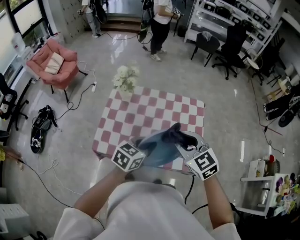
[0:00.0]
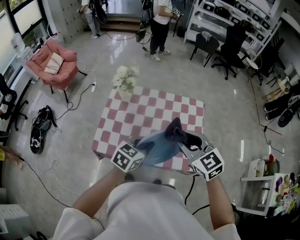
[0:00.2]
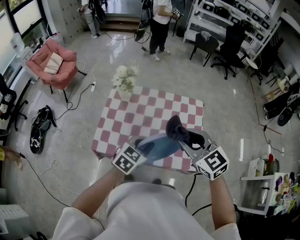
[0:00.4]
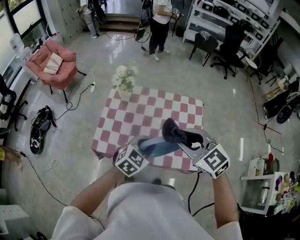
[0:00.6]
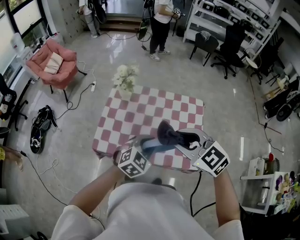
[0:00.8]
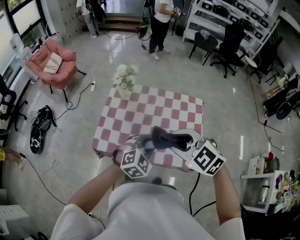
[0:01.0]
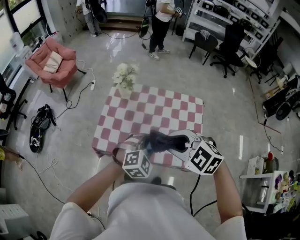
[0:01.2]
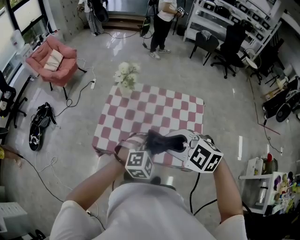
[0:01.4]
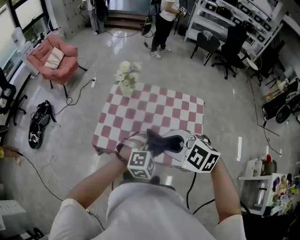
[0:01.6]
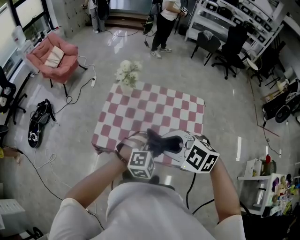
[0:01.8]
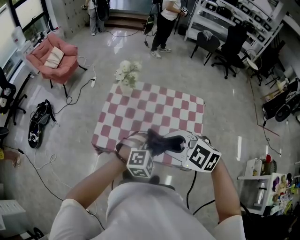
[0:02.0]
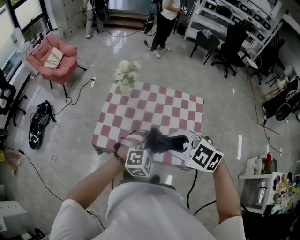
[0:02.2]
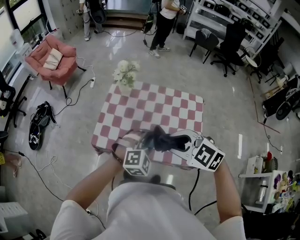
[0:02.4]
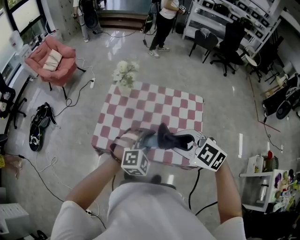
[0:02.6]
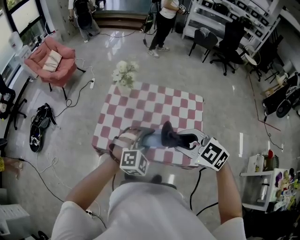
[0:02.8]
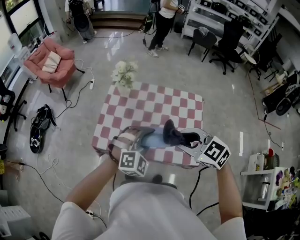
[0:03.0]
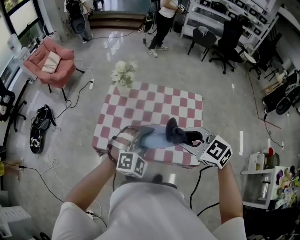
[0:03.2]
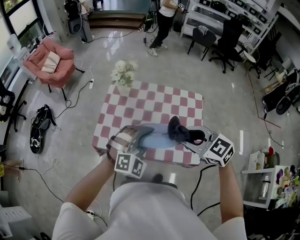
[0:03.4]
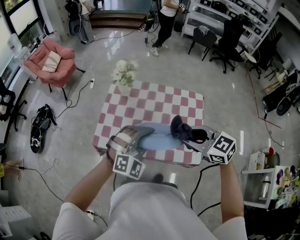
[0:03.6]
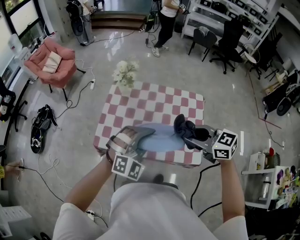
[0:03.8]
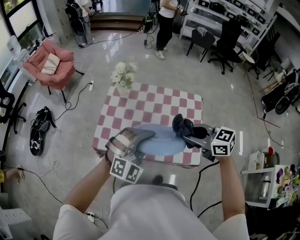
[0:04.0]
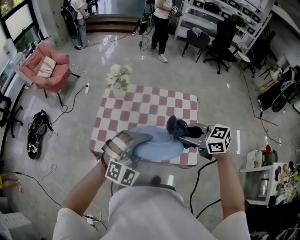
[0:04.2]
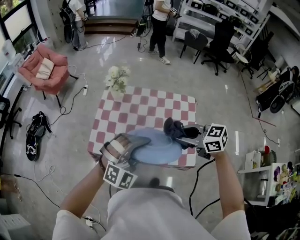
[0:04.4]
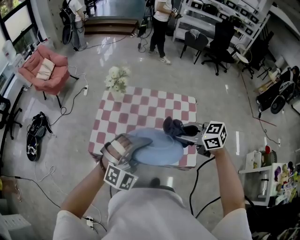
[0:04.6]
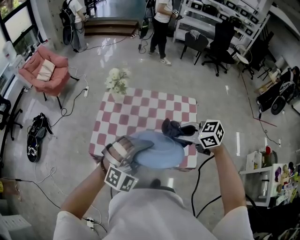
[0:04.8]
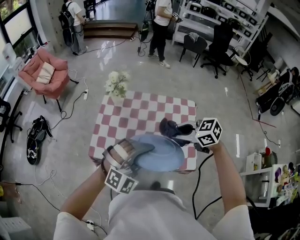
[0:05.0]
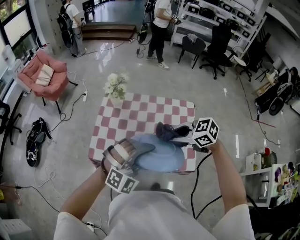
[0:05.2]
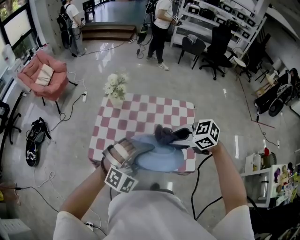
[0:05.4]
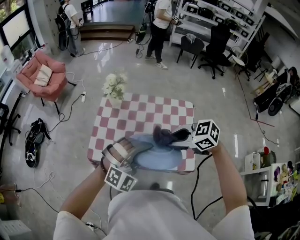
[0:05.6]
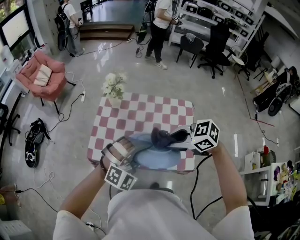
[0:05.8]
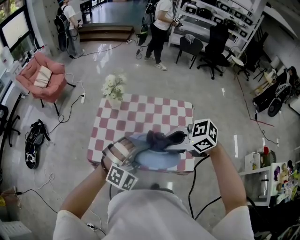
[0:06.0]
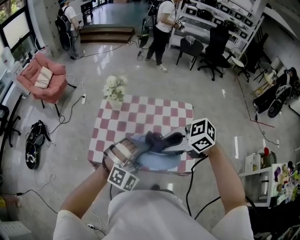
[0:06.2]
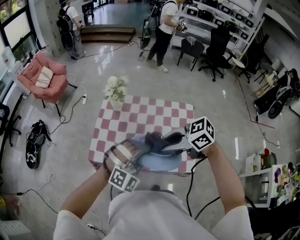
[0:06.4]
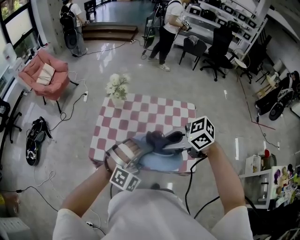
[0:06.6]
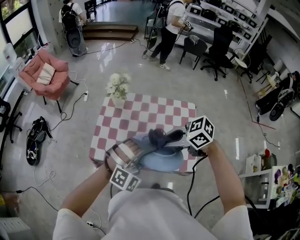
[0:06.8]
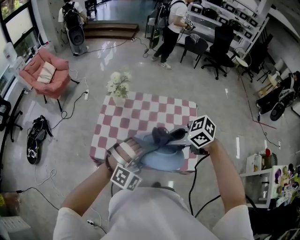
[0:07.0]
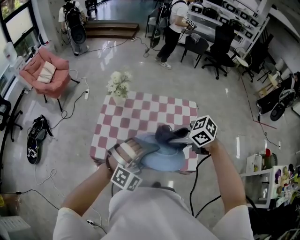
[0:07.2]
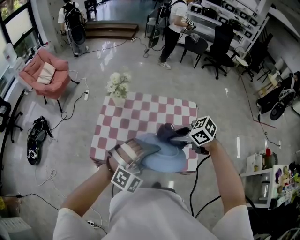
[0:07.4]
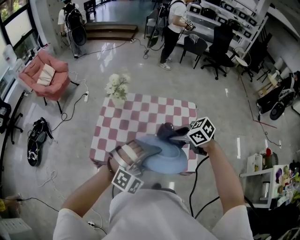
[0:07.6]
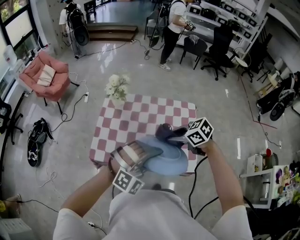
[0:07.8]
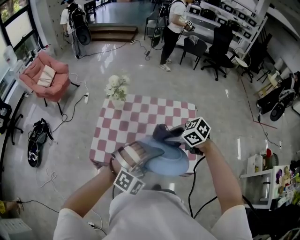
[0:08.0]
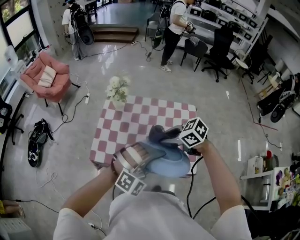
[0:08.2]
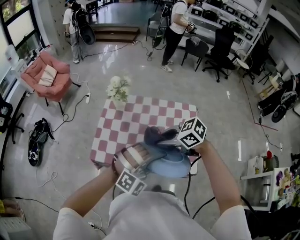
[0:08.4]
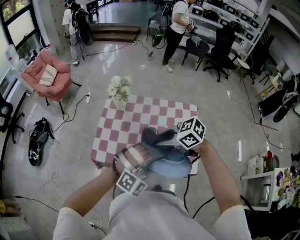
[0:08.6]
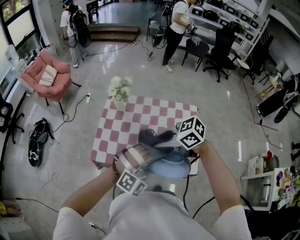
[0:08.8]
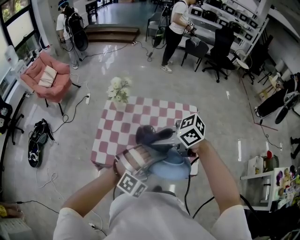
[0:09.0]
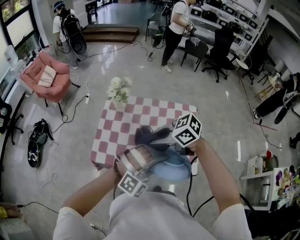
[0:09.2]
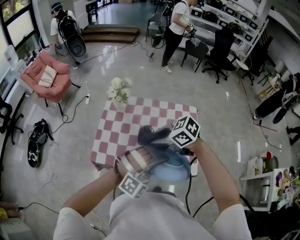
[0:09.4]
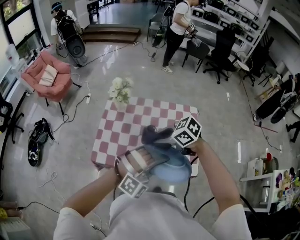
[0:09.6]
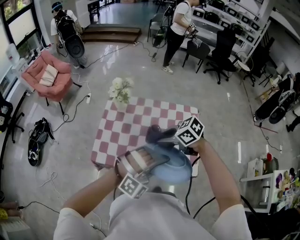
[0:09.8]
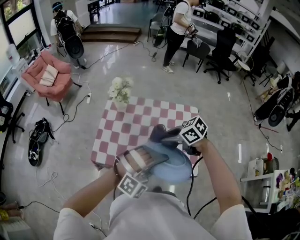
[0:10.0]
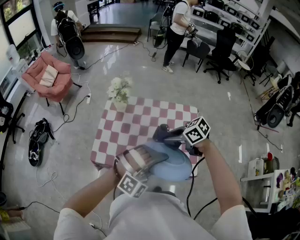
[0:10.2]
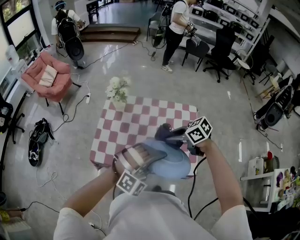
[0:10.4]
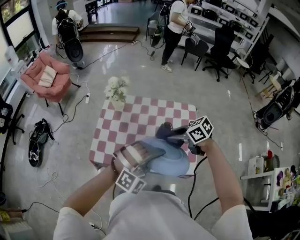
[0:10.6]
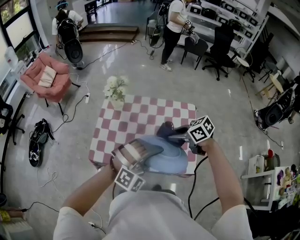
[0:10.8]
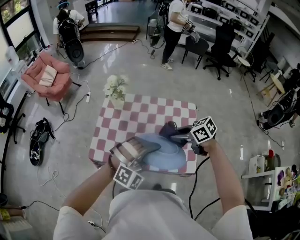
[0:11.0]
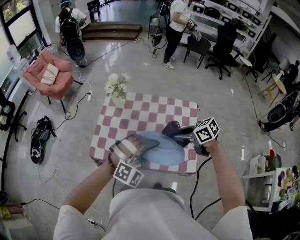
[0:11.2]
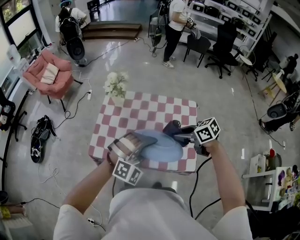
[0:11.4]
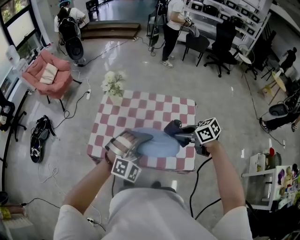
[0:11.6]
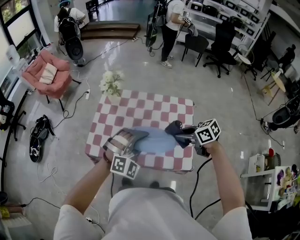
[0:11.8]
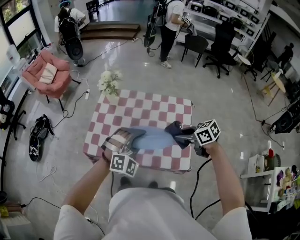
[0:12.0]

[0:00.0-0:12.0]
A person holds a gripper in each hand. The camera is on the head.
0:00.0 to 0:01.6: The right gripper shifts roughly 10 cm to the left and backward, and rotates roughly 40 degrees; the left gripper rotates around the line of its fingers by some 60 degrees, clockwise from behind.
0:01.6 to 0:03.0: The right gripper is displaced to the right by some 10 cm.
0:03.0 to 0:04.4: The left gripper shifts some 5 cm upward. Meanwhile the right gripper changes its angle by roughly 20 degrees.
0:04.4 to 0:06.0: The right gripper shifts by approximately 5 cm.
0:06.0 to 0:07.6: The right gripper goes about 10 cm downward, and rotates about 20 degrees.
0:07.6 to 0:09.0: The right gripper shifts by about 15 cm, and swivels some 20 degrees.
0:09.0 to 0:10.4: The right gripper changes place by some 15 cm.
0:10.4 to 0:12.0: The left gripper shifts by approximately 5 cm, and turns by about 20 degrees. The right gripper moves some 15 cm.

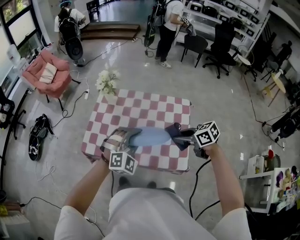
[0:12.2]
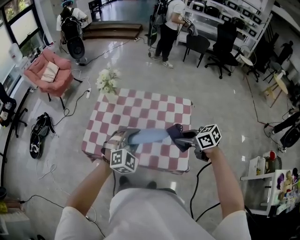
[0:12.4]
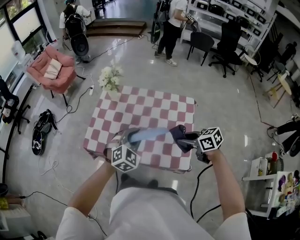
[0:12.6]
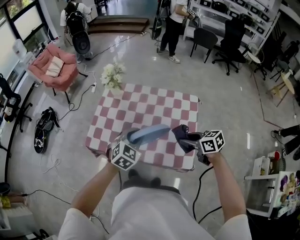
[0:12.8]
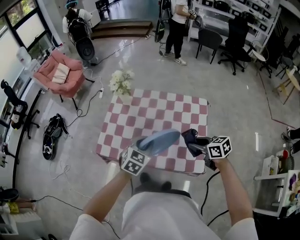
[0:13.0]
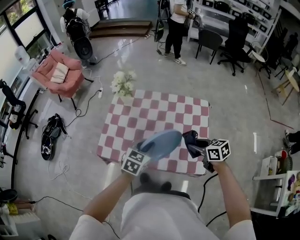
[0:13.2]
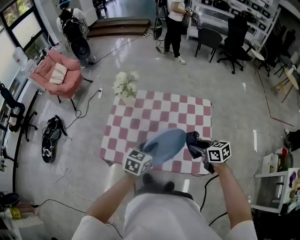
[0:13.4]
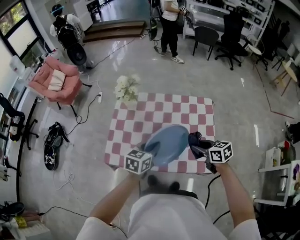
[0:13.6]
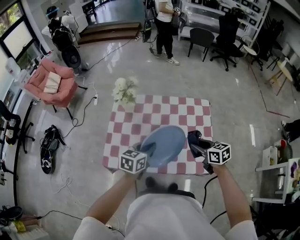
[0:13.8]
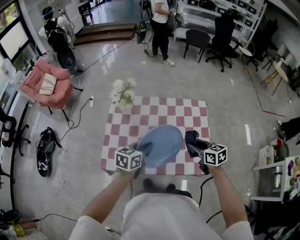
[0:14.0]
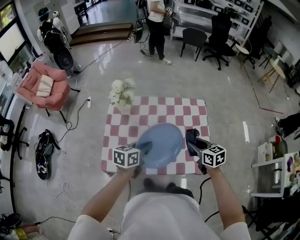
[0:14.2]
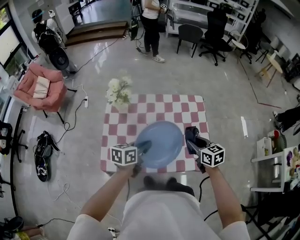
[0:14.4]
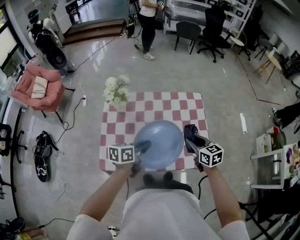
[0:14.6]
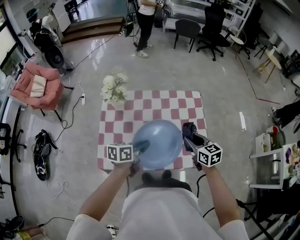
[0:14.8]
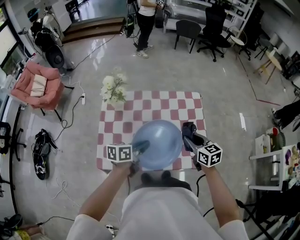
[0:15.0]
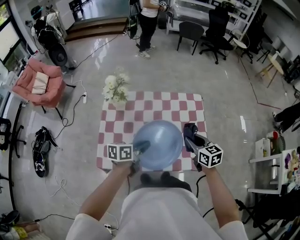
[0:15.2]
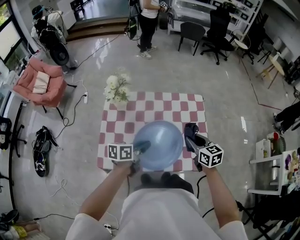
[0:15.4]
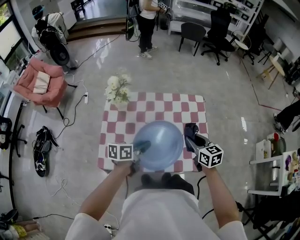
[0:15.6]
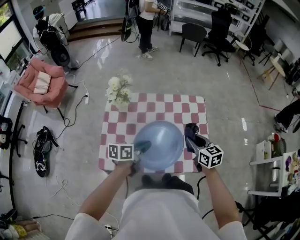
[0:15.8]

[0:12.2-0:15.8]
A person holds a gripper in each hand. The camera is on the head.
0:12.2 to 0:14.0: The left gripper moves about 20 cm, and rotates around the line of its fingers by about 80 degrees, counterclockwise from behind. Meanwhile the right gripper changes place by approximately 10 cm, and turns by some 30 degrees.
0:14.0 to 0:15.8: The left gripper swivels roughly 20 degrees.

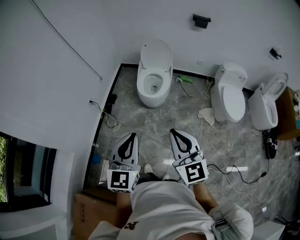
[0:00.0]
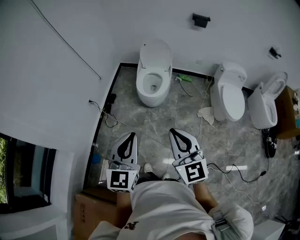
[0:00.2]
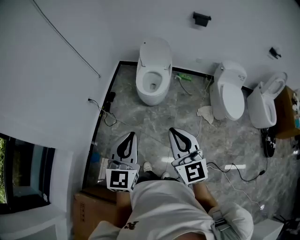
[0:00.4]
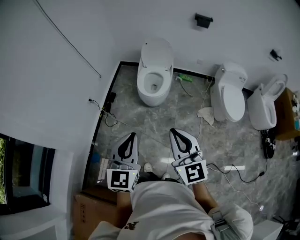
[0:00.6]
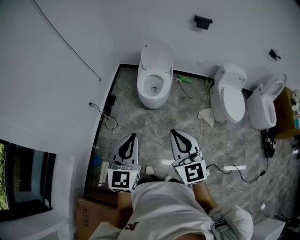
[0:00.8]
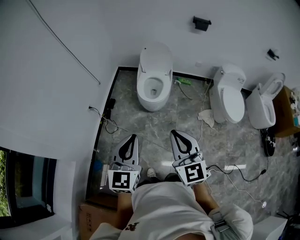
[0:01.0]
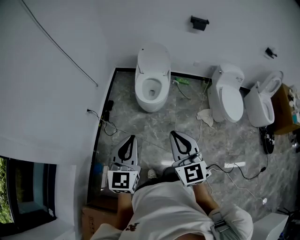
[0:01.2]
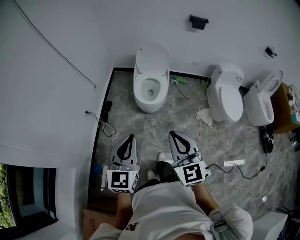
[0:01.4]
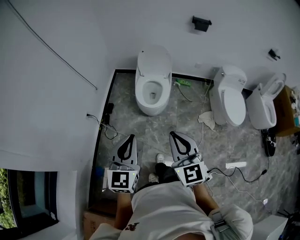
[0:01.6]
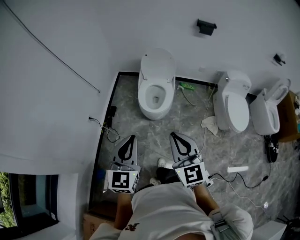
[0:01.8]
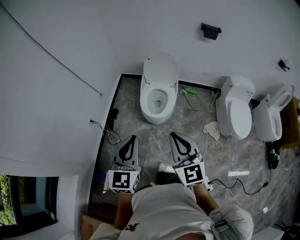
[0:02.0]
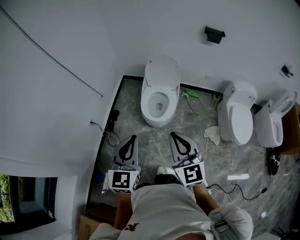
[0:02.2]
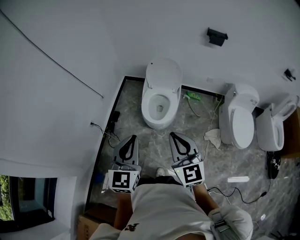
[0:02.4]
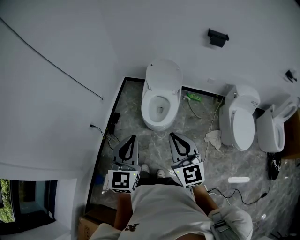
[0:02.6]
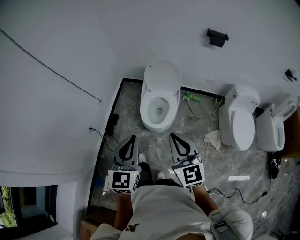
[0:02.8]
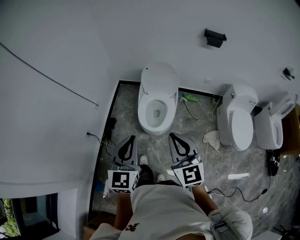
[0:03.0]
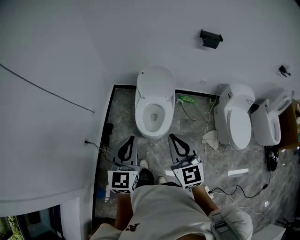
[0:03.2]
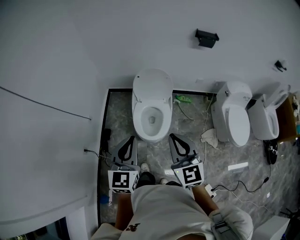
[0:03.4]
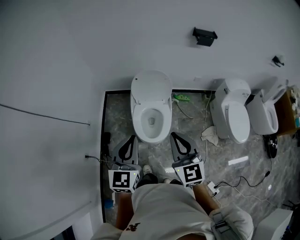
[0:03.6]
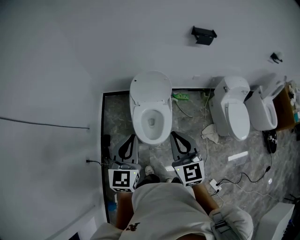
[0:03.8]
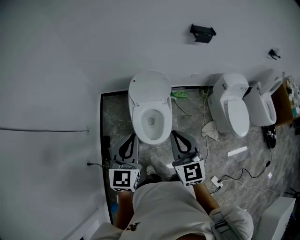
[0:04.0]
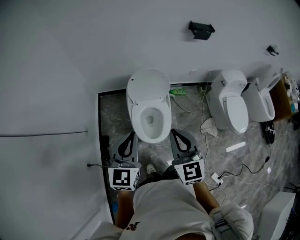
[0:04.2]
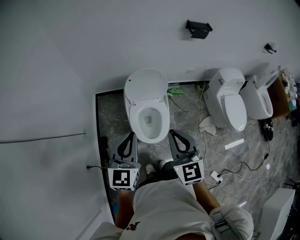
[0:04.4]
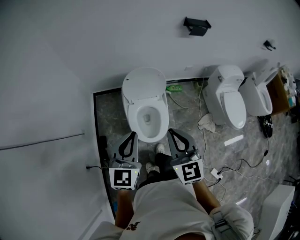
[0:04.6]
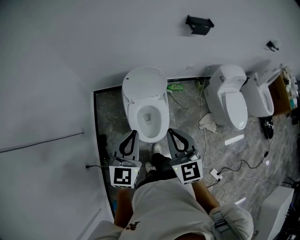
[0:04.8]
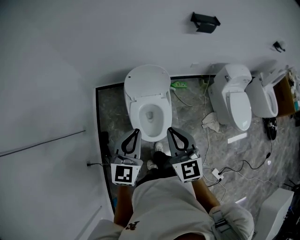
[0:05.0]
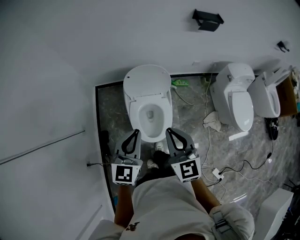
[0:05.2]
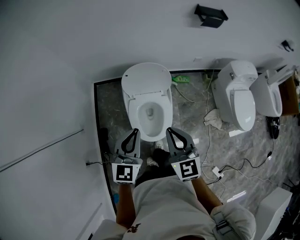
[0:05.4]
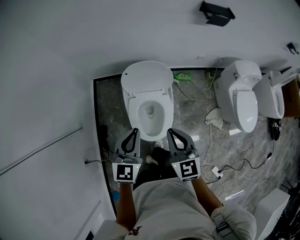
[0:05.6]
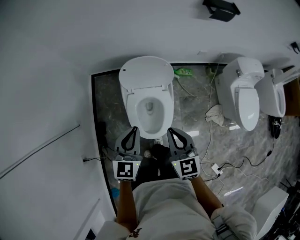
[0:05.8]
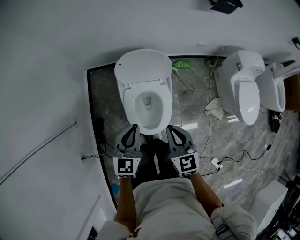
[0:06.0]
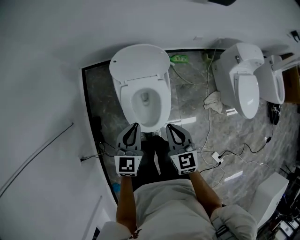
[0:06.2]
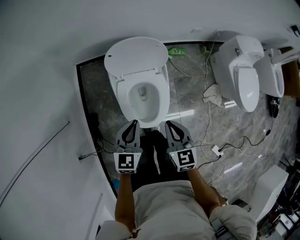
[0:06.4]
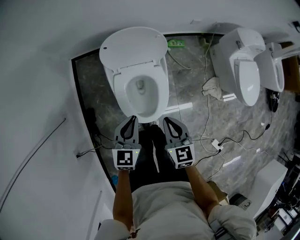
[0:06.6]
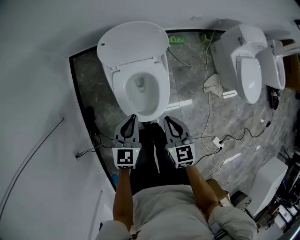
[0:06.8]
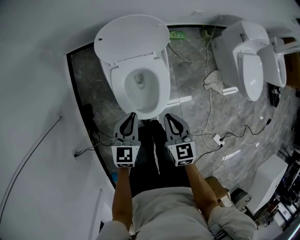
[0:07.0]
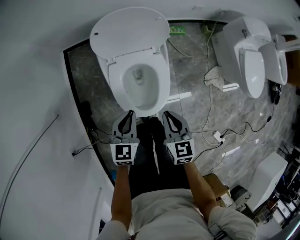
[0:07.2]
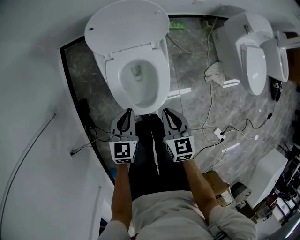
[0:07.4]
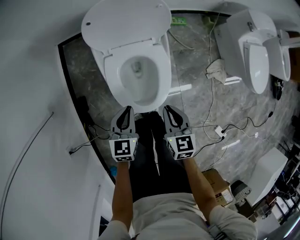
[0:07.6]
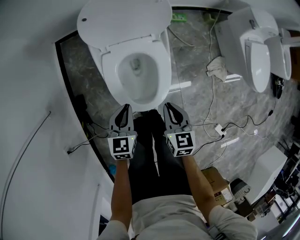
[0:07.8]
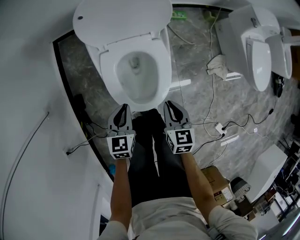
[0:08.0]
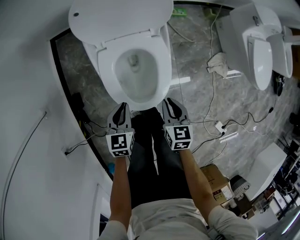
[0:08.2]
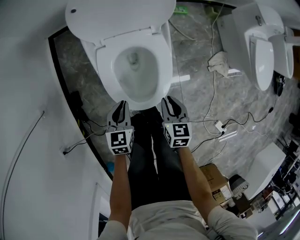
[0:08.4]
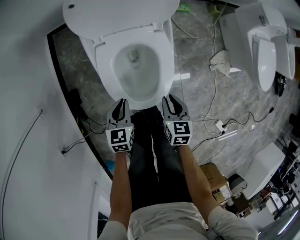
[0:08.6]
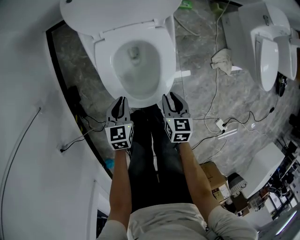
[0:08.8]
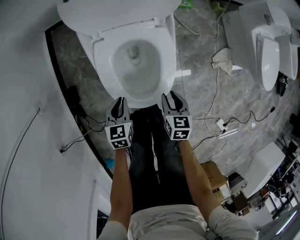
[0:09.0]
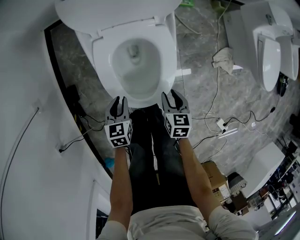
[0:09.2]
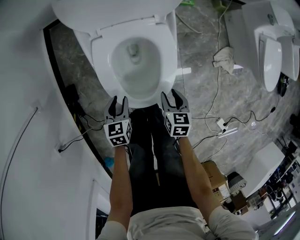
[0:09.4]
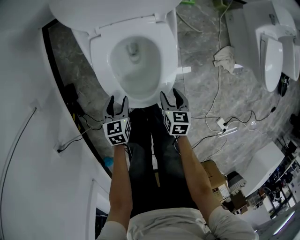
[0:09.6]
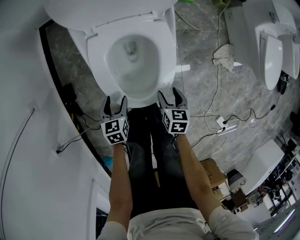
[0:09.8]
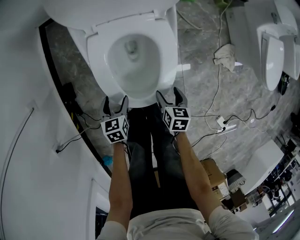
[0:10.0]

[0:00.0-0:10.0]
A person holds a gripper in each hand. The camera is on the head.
0:00.0 to 0:01.4: Both grippers move forward and to the left, approximately 10 cm.
0:01.4 to 0:02.8: The grippers both shift forward by roughly 25 cm.
0:02.8 to 0:04.2: Both grippers move forward, about 25 cm. The right gripper turns by about 20 degrees.
0:04.2 to 0:05.8: Both grippers travel together downward and forward, approximately 25 cm.
0:05.8 to 0:07.2: The two grippers go some 25 cm downward.
0:07.2 to 0:08.6: The grippers both shift downward by roughly 20 cm.
0:08.6 to 0:10.0: Both grippers move downward, roughly 10 cm. The right gripper opens; the left gripper opens up.
